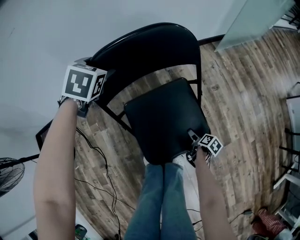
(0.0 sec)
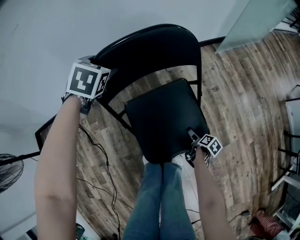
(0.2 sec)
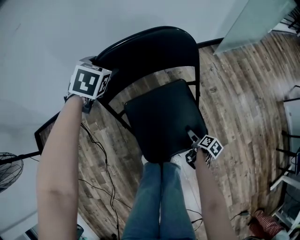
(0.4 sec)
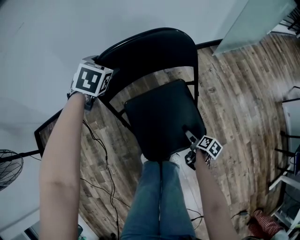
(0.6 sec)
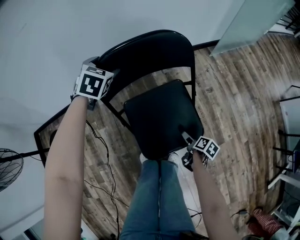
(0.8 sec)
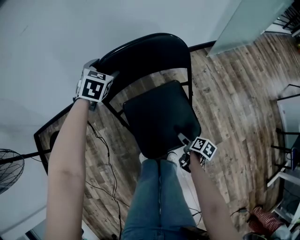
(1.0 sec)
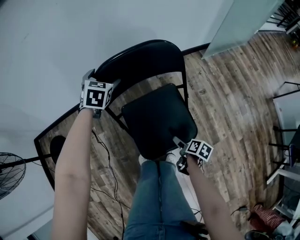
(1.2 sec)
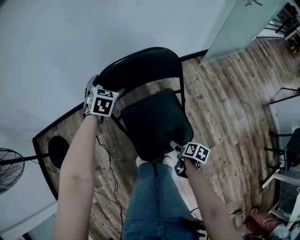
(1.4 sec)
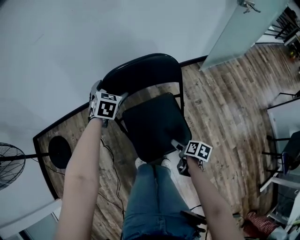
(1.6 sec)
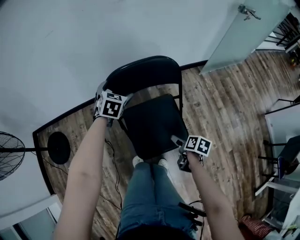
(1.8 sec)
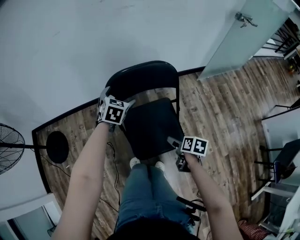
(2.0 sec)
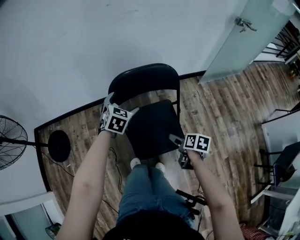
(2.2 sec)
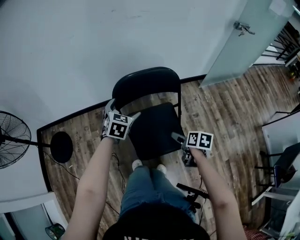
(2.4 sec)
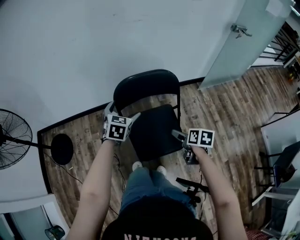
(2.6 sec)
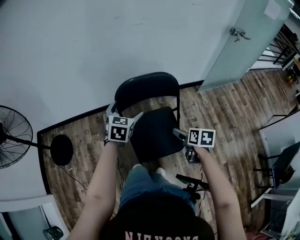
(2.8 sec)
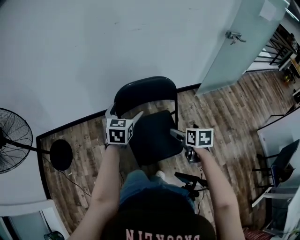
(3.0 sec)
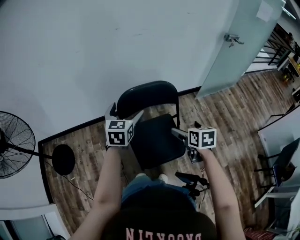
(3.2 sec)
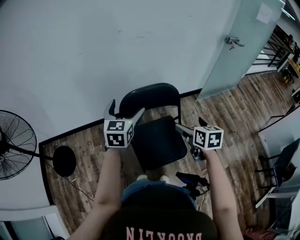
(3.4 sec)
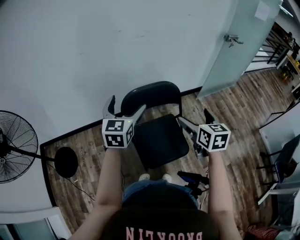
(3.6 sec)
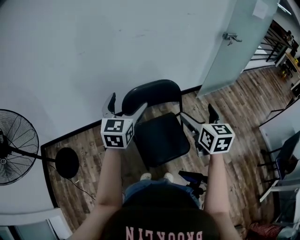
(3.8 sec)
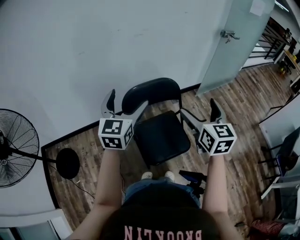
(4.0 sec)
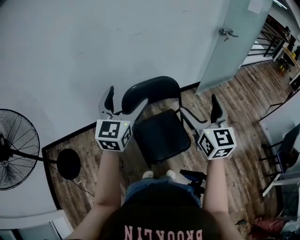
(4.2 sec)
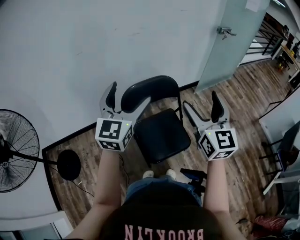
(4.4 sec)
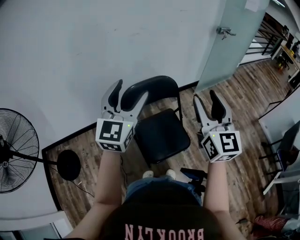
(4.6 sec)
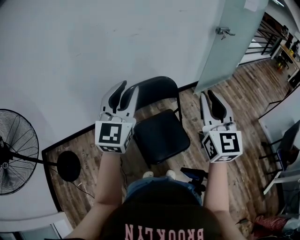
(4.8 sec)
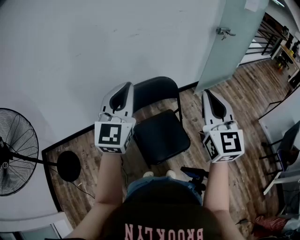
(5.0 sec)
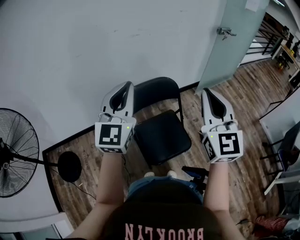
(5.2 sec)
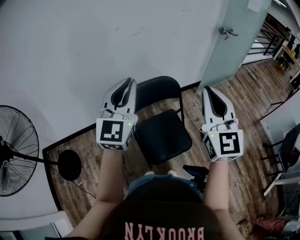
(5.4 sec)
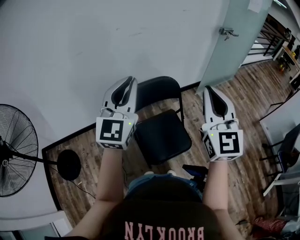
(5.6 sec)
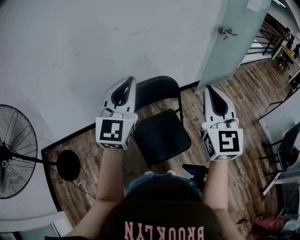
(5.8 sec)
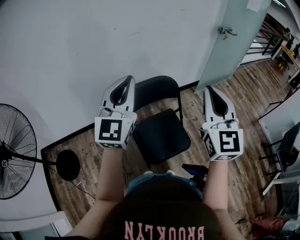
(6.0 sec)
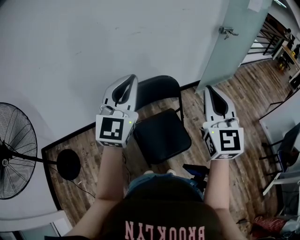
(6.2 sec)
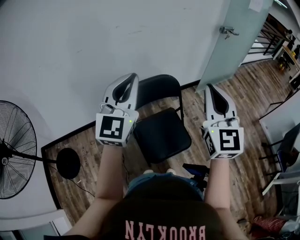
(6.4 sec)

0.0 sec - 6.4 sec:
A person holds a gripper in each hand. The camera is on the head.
0.0 sec - 1.6 sec: The left gripper heads backward, covering about 5 cm. The right gripper moves upward, approximately 25 cm, and swivels approximately 20 degrees.
1.6 sec - 3.2 sec: The right gripper heads upward, covering about 30 cm, and rolls counterclockwise, seen from behind, by roughly 40 degrees; the left gripper moves upward and backward, about 25 cm, and swivels about 30 degrees.
3.2 sec - 4.8 sec: The two grippers go some 25 cm upward. The right gripper tips its fingers upward by approximately 50 degrees, and closes. Meanwhile the left gripper swivels about 30 degrees, and closes up.
4.8 sec - 6.4 sec: The grippers make only small movements.

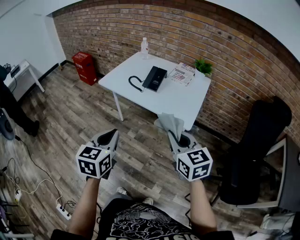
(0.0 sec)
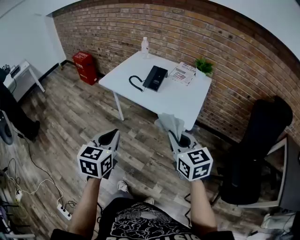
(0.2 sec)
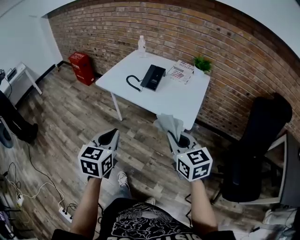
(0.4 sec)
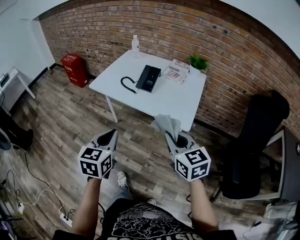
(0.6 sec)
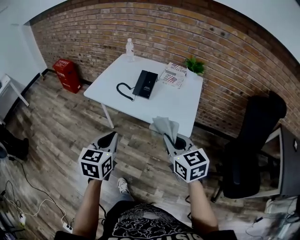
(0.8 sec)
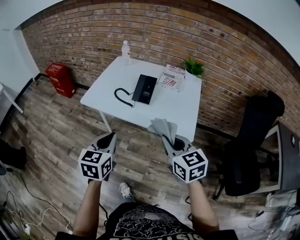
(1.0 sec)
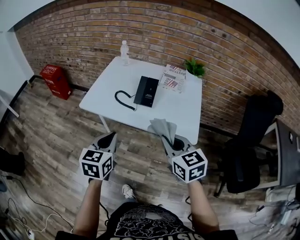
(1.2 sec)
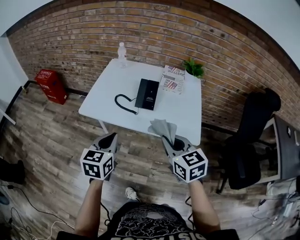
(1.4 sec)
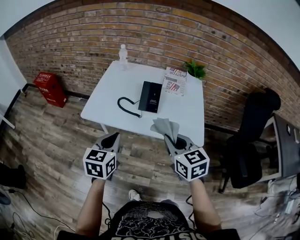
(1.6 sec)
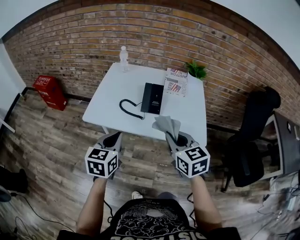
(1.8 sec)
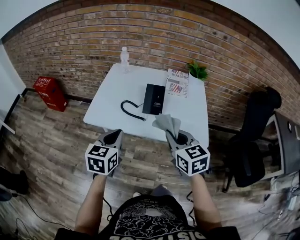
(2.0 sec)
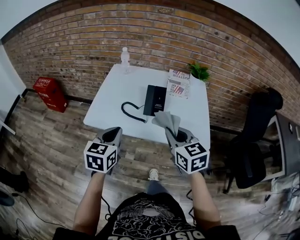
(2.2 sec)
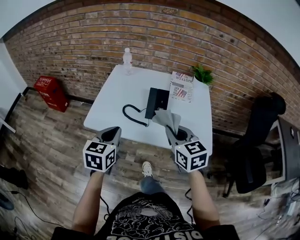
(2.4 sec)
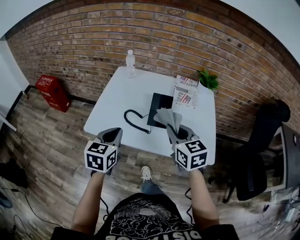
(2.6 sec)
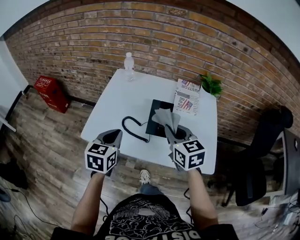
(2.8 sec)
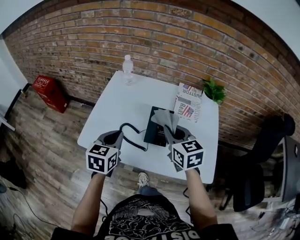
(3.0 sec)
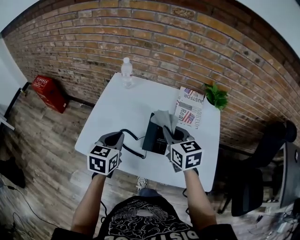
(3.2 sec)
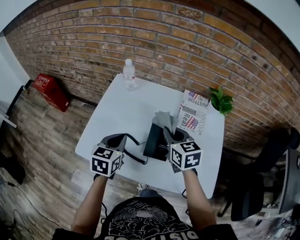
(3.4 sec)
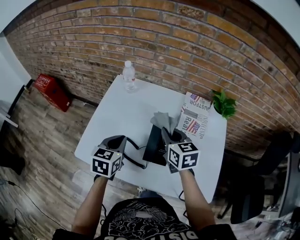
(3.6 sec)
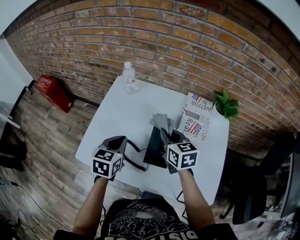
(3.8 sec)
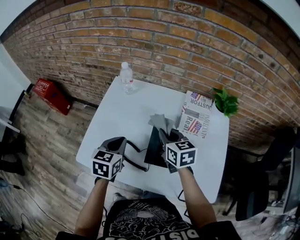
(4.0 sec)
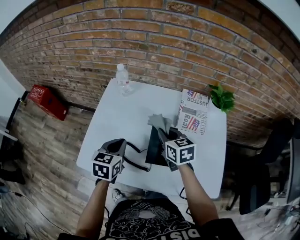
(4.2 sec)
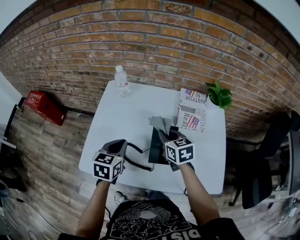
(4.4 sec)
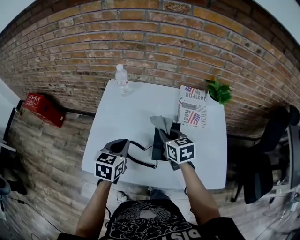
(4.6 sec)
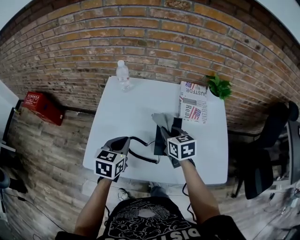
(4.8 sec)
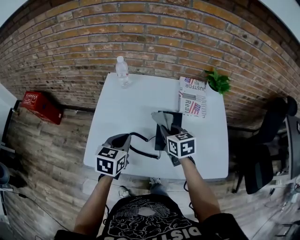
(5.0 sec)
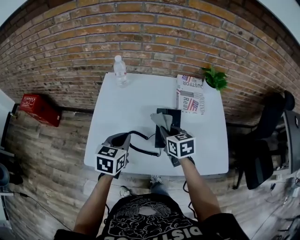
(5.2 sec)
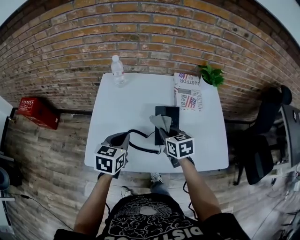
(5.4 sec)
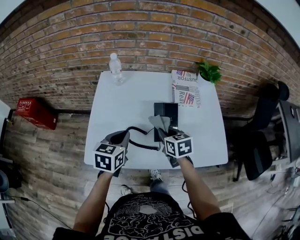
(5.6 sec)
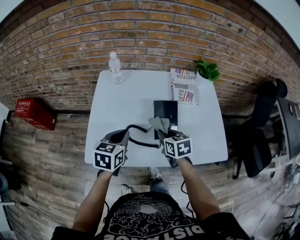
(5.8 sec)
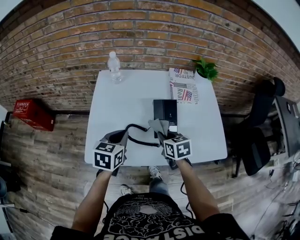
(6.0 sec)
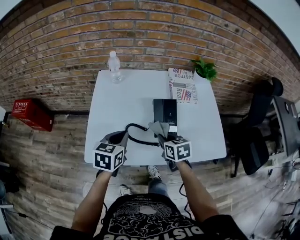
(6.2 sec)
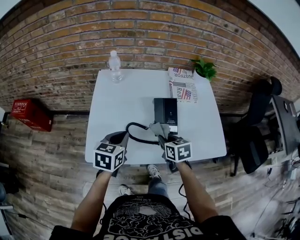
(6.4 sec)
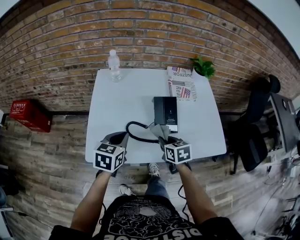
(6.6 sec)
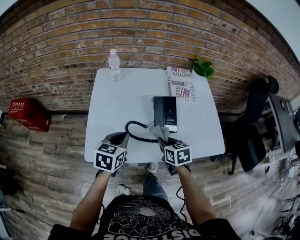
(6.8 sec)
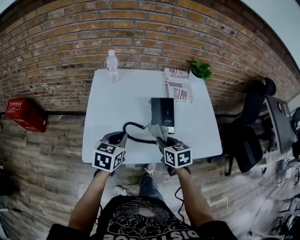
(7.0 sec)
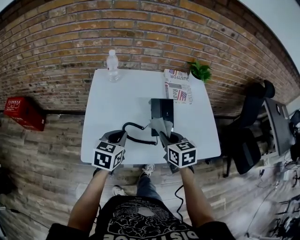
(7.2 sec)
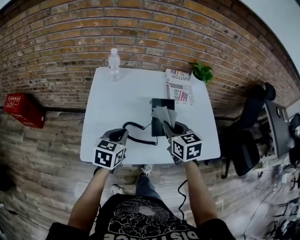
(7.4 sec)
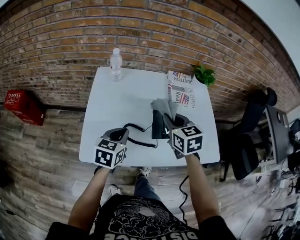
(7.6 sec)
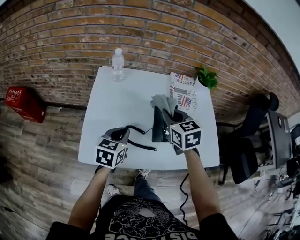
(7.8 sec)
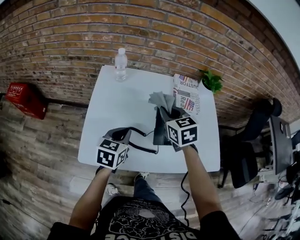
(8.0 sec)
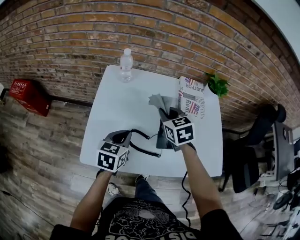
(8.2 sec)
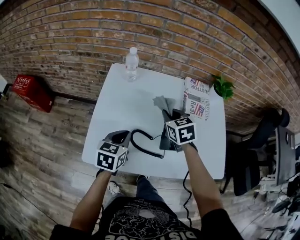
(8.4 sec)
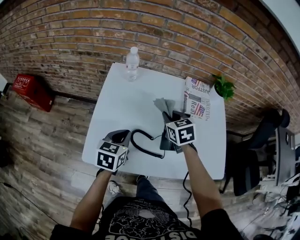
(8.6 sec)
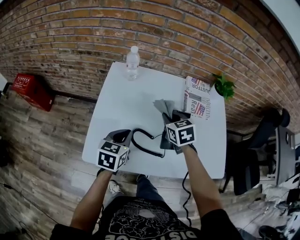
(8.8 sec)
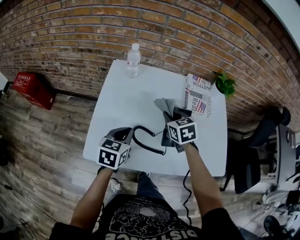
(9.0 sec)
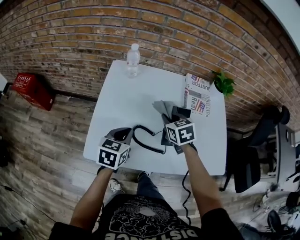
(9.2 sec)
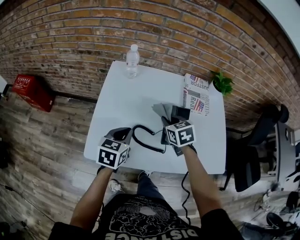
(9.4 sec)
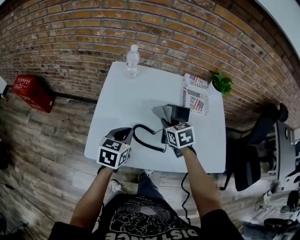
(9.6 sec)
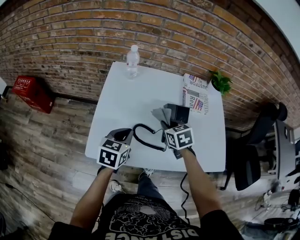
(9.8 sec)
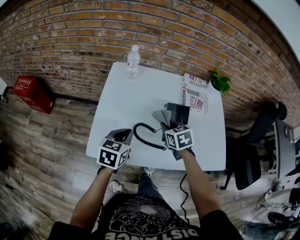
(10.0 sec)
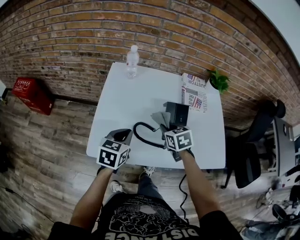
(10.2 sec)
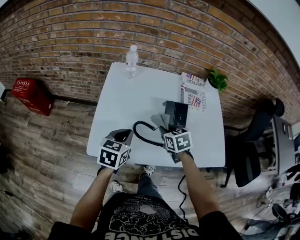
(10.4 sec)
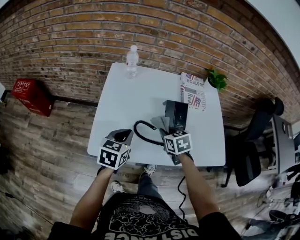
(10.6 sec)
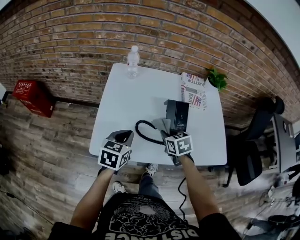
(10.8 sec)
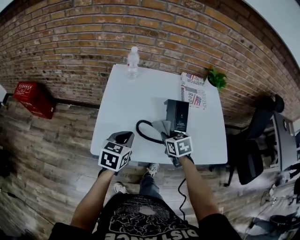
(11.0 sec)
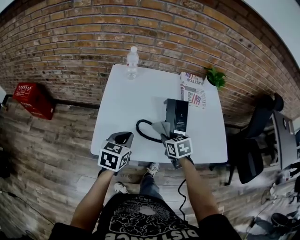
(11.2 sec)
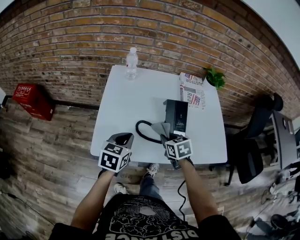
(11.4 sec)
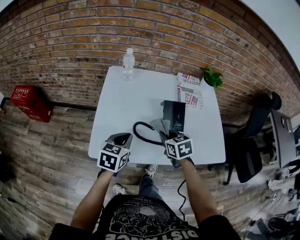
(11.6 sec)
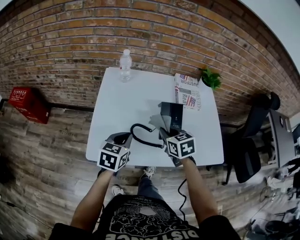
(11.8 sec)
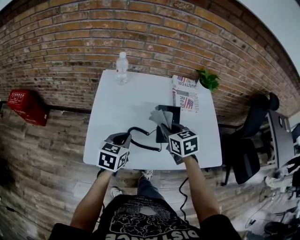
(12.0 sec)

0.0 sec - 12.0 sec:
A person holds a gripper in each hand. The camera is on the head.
0.0 sec - 1.6 sec: The left gripper goes about 30 cm forward. The right gripper moves forward and to the left, about 25 cm.
1.6 sec - 3.0 sec: The two grippers go approximately 25 cm forward.
3.0 sec - 4.4 sec: The left gripper moves forward, roughly 10 cm; the right gripper moves forward and downward, about 15 cm.
4.4 sec - 6.0 sec: The right gripper shifts about 15 cm backward and downward; the left gripper heads backward, covering approximately 5 cm.
6.0 sec - 7.6 sec: The right gripper heads upward, covering some 10 cm.
7.6 sec - 9.0 sec: The right gripper is displaced downward and forward by about 10 cm.
9.0 sec - 10.4 sec: The right gripper goes approximately 10 cm backward.
10.4 sec - 12.0 sec: The right gripper heads upward, covering approximately 10 cm.

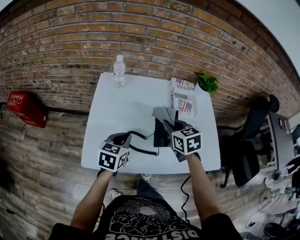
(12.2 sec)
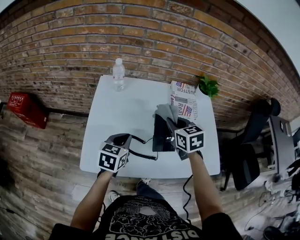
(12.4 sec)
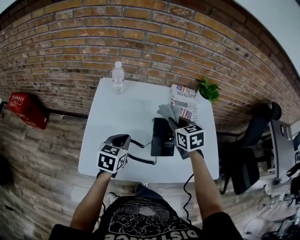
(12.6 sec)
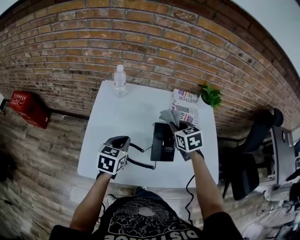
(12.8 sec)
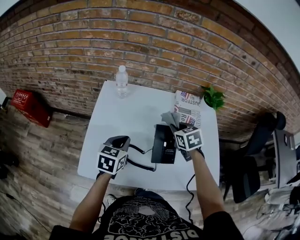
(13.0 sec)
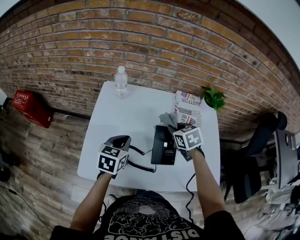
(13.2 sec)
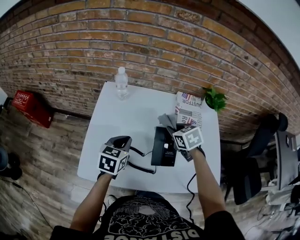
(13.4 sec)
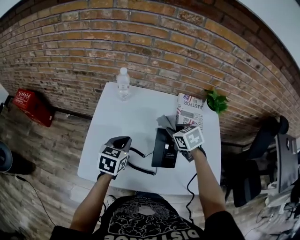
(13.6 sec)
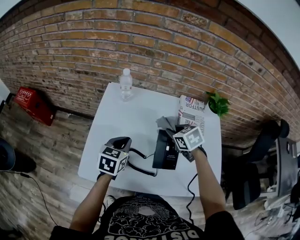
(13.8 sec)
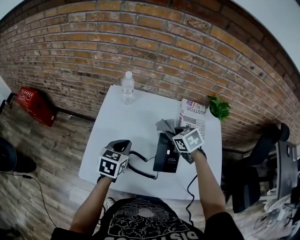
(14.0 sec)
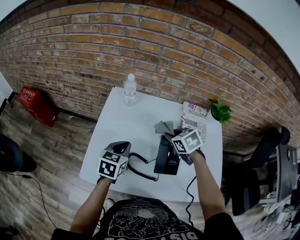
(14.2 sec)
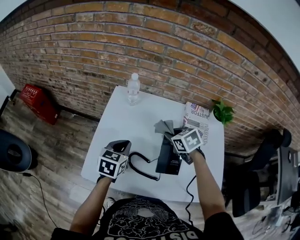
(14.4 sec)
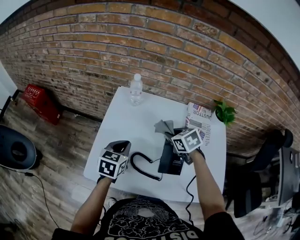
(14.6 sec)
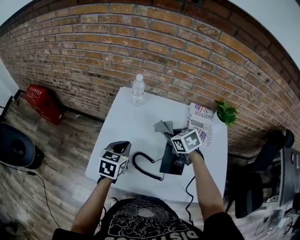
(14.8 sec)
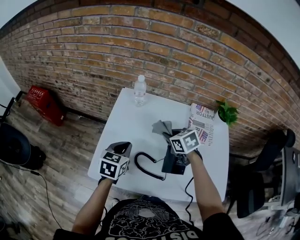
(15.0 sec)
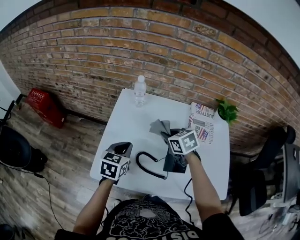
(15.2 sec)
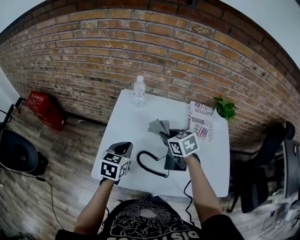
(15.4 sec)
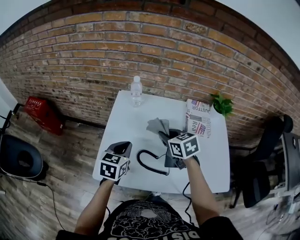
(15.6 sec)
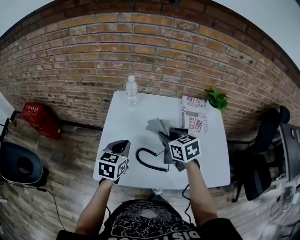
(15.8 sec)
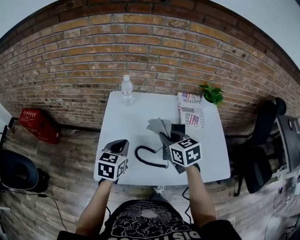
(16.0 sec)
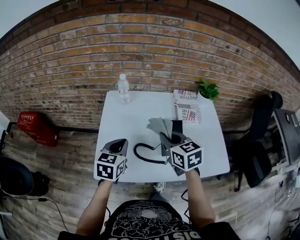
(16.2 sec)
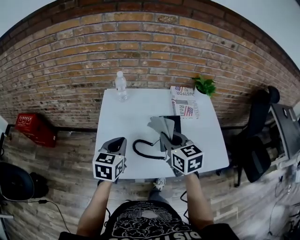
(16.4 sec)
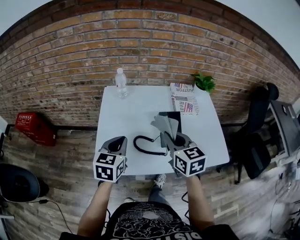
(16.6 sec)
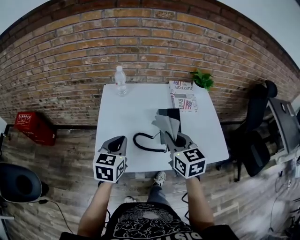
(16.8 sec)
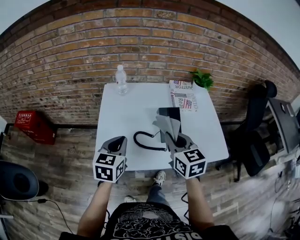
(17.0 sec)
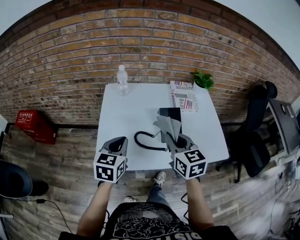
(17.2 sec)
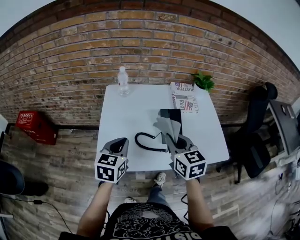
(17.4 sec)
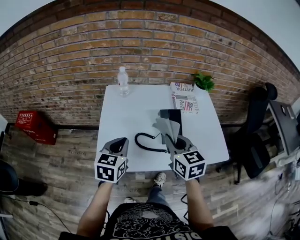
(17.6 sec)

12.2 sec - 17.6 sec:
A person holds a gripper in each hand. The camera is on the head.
12.2 sec - 13.6 sec: The grippers both shift forward by roughly 10 cm. The right gripper rotates roughly 20 degrees.
13.6 sec - 15.0 sec: Both grippers travel together to the left, roughly 5 cm.
15.0 sec - 16.2 sec: The right gripper heads backward and upward, covering some 15 cm, and swivels roughly 30 degrees, while the left gripper moves some 5 cm.
16.2 sec - 17.6 sec: Both grippers move backward, roughly 5 cm.
